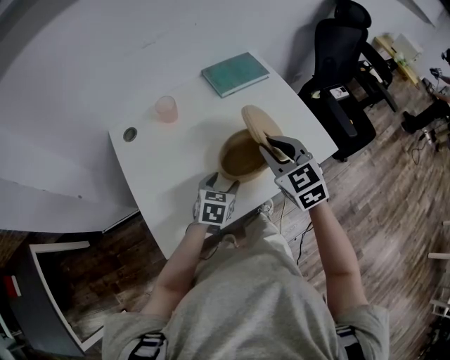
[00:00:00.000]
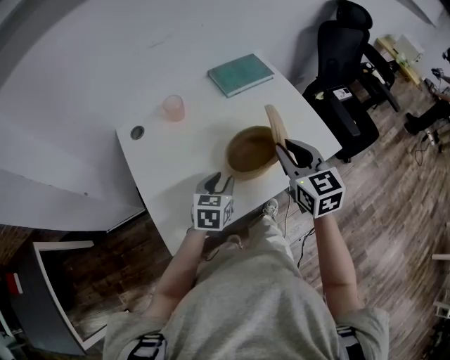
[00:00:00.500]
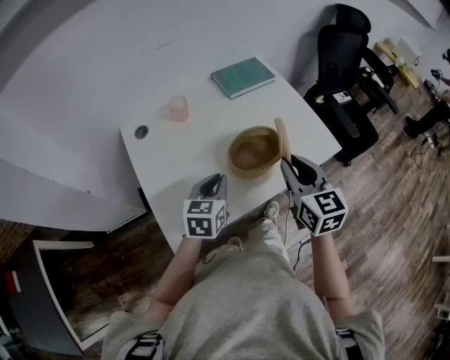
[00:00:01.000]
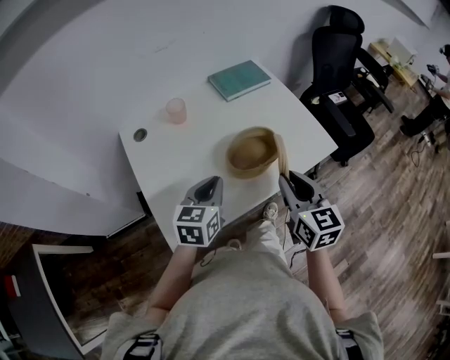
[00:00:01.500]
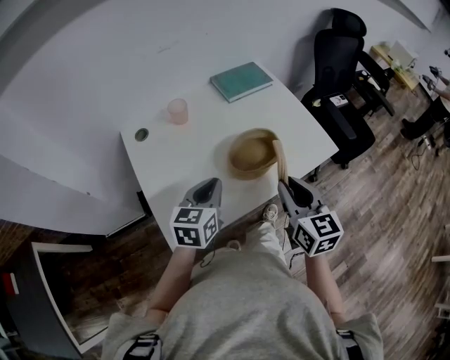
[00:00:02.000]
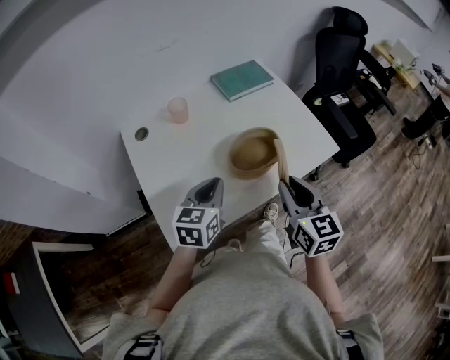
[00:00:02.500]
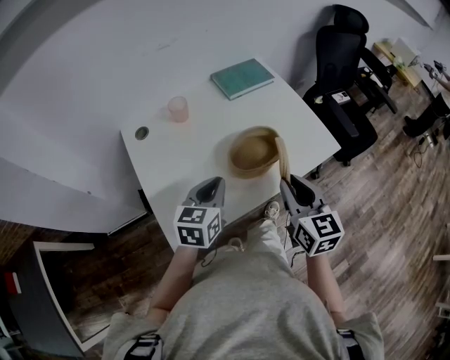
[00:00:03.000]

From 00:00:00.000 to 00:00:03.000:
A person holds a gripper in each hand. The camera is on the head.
From 00:00:00.000 to 00:00:01.500: The right gripper moves backward, roughly 10 cm, and rotates about 30 degrees. The left gripper moves upward, backward and to the left, about 15 cm, and closes its fingers.
From 00:00:01.500 to 00:00:03.000: The two grippers keep their place.

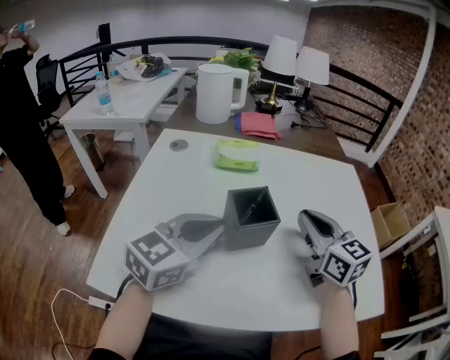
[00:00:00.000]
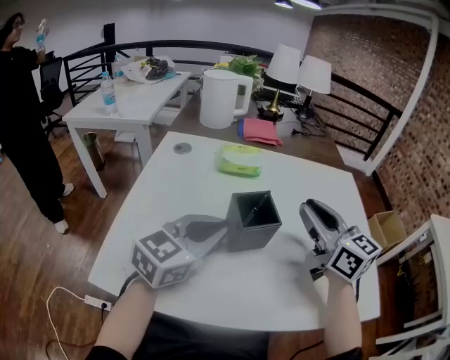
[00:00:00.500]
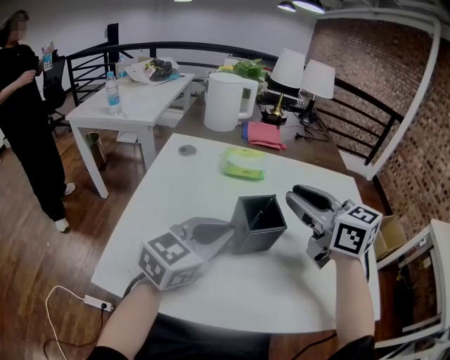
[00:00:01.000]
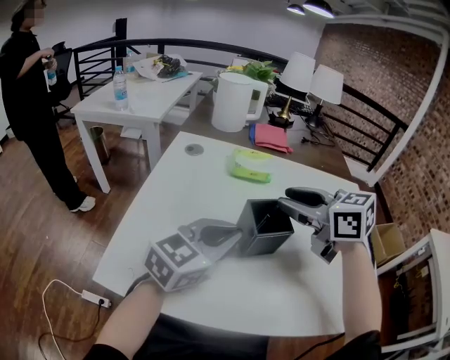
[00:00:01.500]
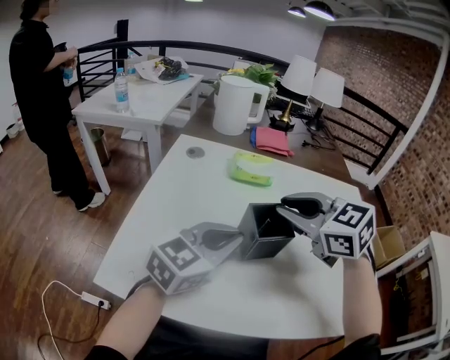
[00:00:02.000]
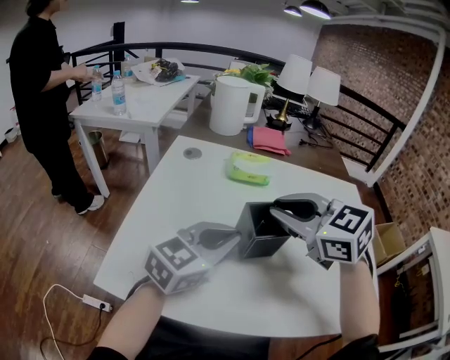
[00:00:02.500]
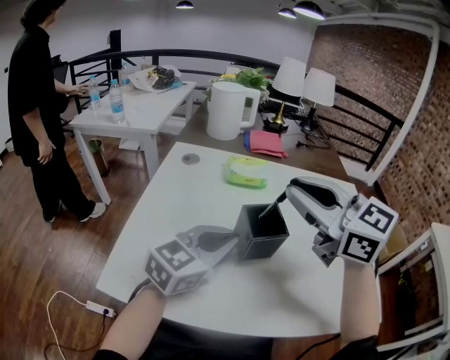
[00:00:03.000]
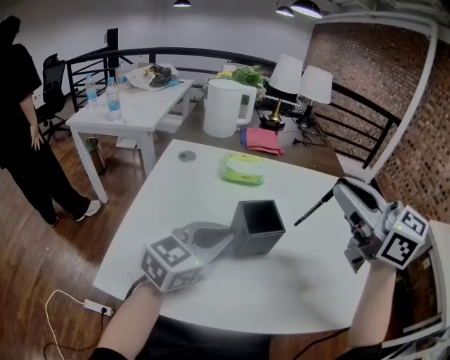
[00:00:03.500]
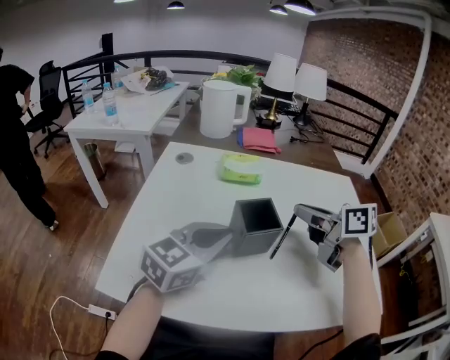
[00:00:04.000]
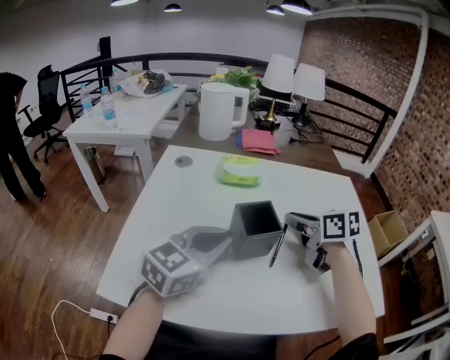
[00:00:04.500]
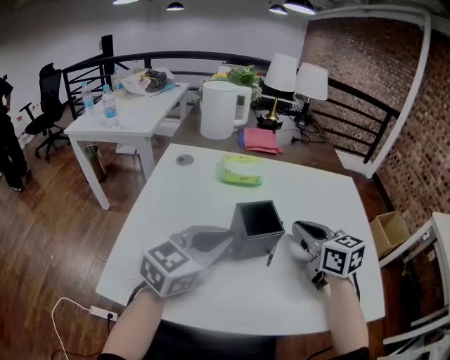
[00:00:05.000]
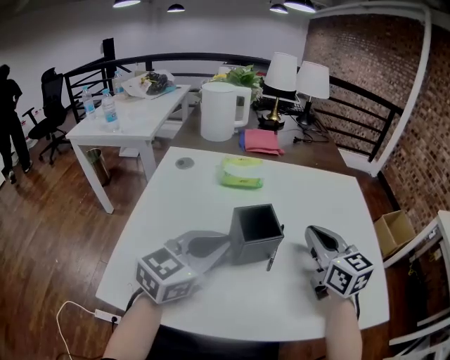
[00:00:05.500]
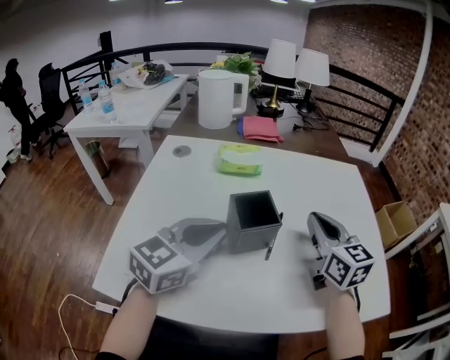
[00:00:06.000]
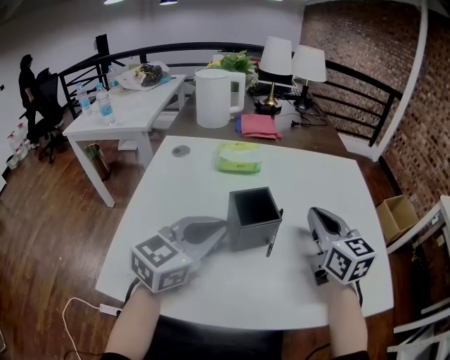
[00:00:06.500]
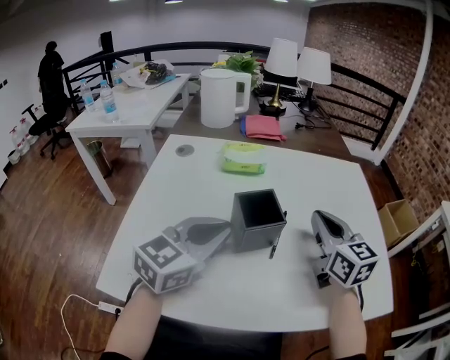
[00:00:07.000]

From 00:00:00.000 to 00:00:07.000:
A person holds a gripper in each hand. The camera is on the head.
From 00:00:00.000 to 00:00:02.000: The right gripper moves to the left and upward, roughly 15 cm, and rotates some 30 degrees.
From 00:00:02.000 to 00:00:03.500: The right gripper heads upward and to the right, covering approximately 15 cm, and turns by roughly 30 degrees.
From 00:00:03.500 to 00:00:05.000: The right gripper travels downward by some 20 cm, and rotates about 20 degrees.
From 00:00:05.000 to 00:00:07.000: There are only small adjustments of the grippers.

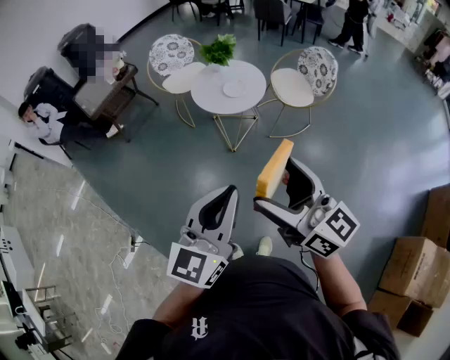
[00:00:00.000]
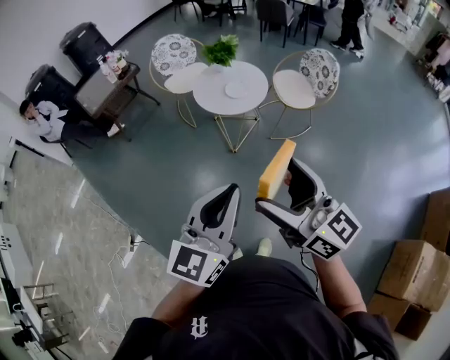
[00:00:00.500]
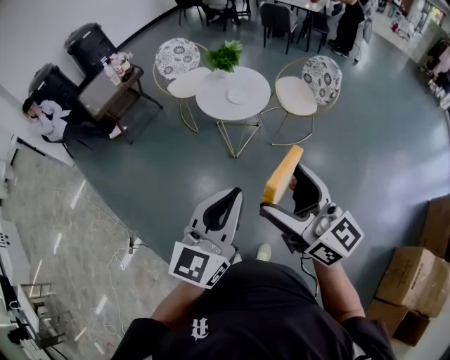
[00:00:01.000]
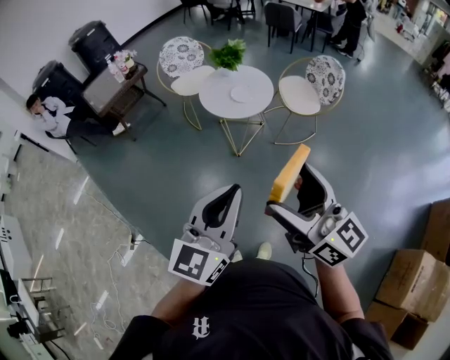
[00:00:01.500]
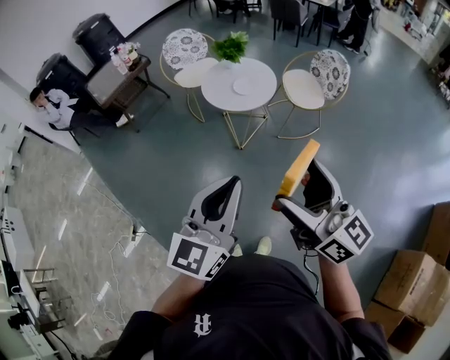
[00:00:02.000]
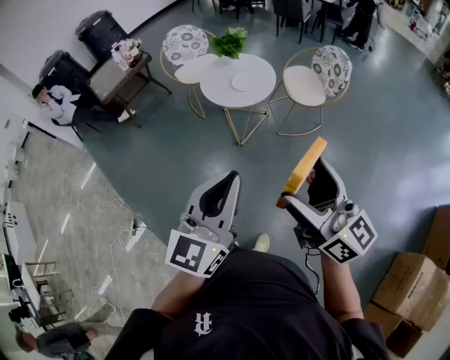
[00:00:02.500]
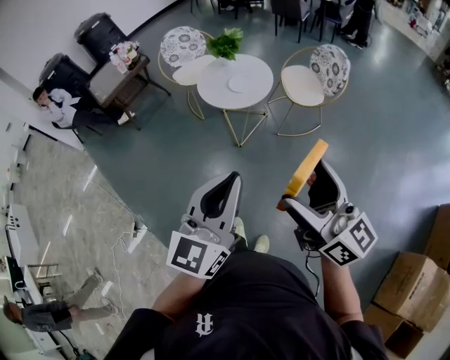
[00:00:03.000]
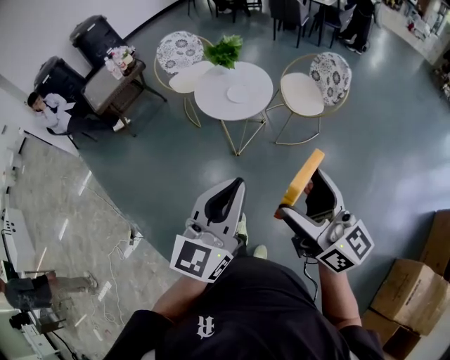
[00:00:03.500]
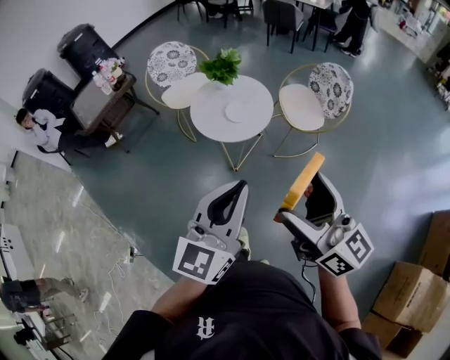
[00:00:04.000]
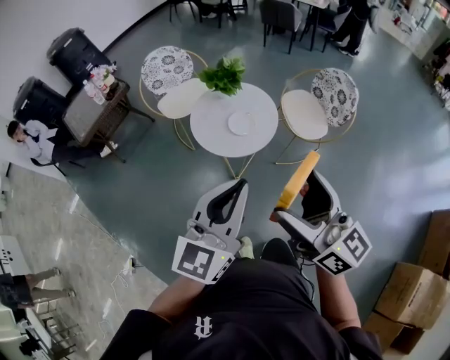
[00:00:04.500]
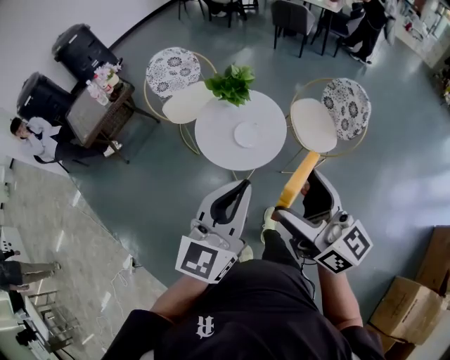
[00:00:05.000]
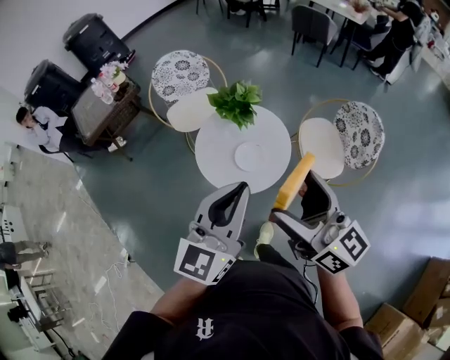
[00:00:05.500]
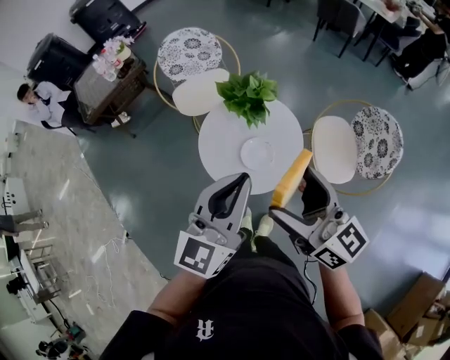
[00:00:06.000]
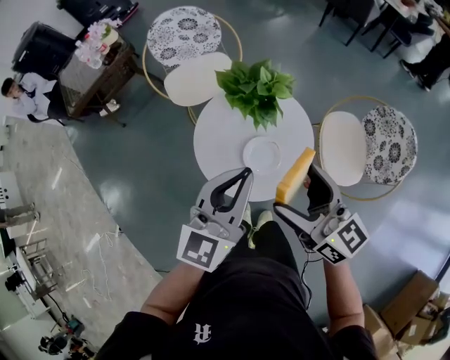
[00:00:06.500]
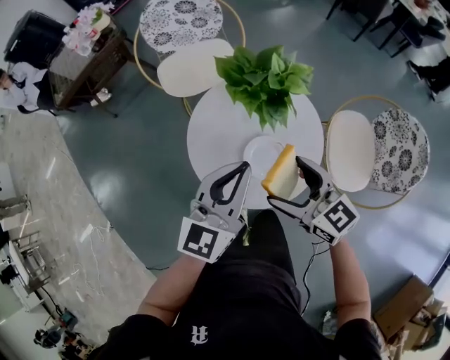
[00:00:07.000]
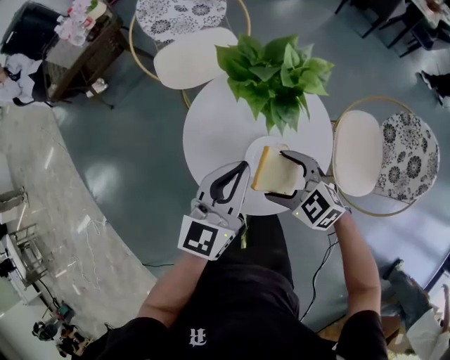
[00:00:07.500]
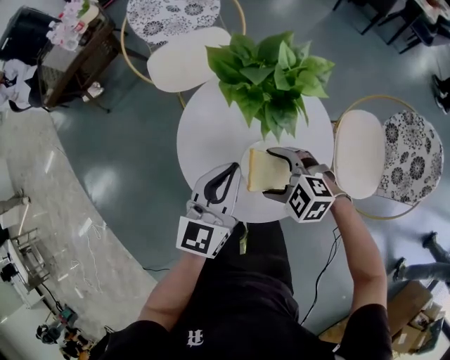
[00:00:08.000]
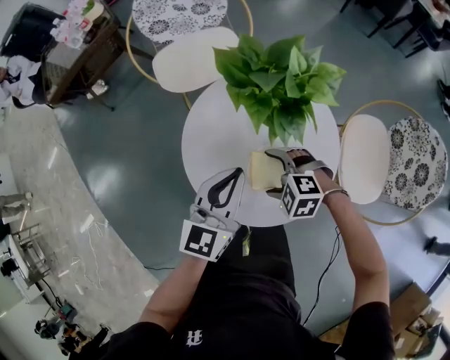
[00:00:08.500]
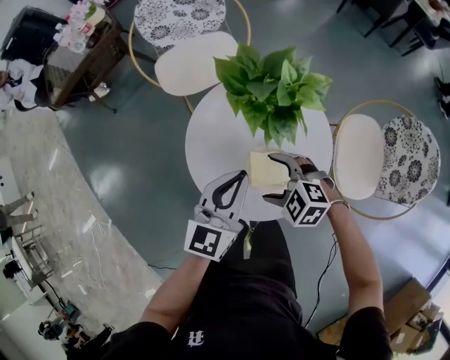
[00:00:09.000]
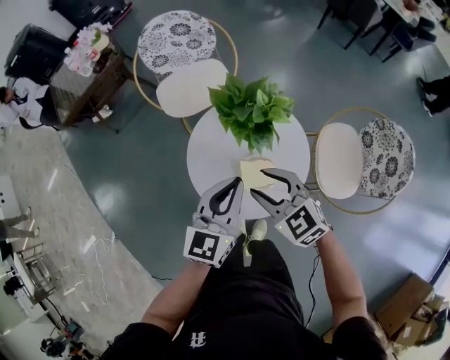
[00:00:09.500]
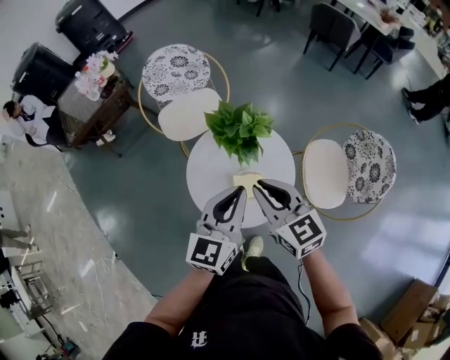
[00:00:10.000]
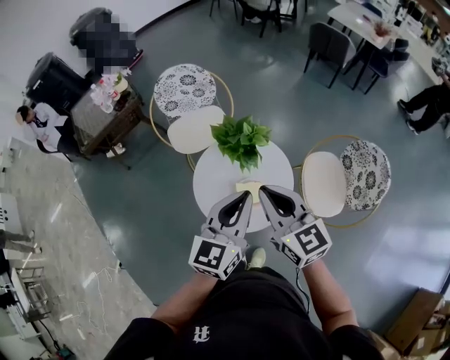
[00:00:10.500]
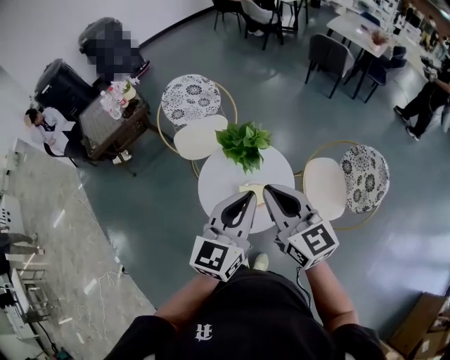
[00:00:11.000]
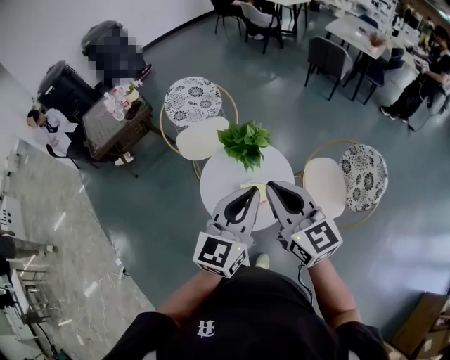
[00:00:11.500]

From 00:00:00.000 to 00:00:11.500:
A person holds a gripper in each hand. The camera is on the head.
From 00:00:00.000 to 00:00:02.000: The right gripper shifts some 5 cm to the right.
From 00:00:02.000 to 00:00:04.000: Both grippers move forward, some 20 cm.
From 00:00:04.000 to 00:00:06.000: The two grippers travel together, forward, some 40 cm.
From 00:00:06.000 to 00:00:07.500: The left gripper travels downward and forward by roughly 30 cm, while the right gripper travels downward by approximately 40 cm, and tips its fingers downward by some 40 degrees.
From 00:00:07.500 to 00:00:09.500: The left gripper moves upward, about 10 cm. The right gripper shifts some 15 cm upward, and closes its fingers.
From 00:00:09.500 to 00:00:11.500: The left gripper moves upward and backward, roughly 25 cm. Meanwhile the right gripper is displaced upward by some 25 cm, rotates some 40 degrees, and closes up.

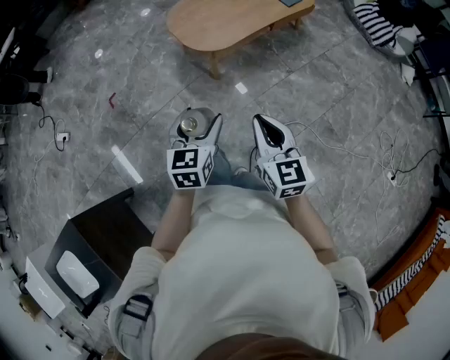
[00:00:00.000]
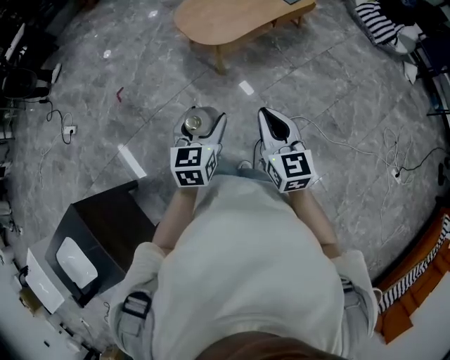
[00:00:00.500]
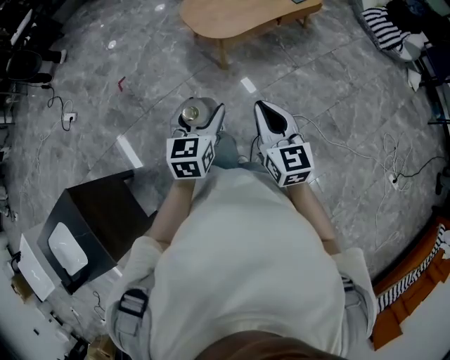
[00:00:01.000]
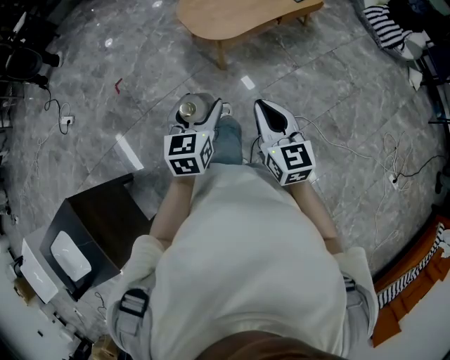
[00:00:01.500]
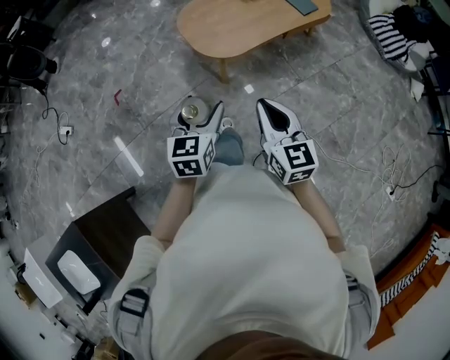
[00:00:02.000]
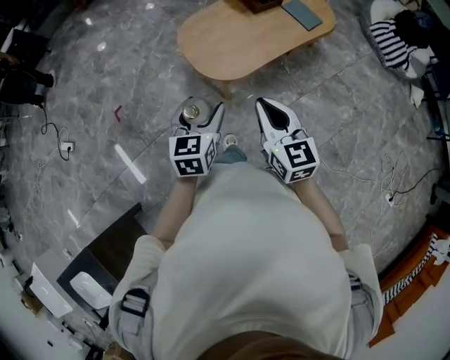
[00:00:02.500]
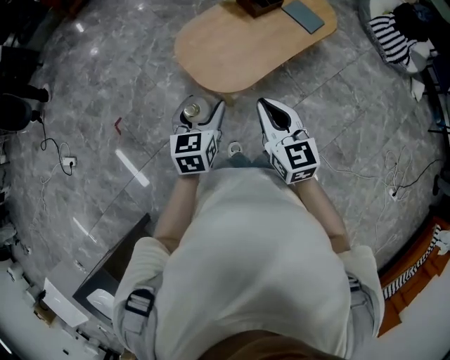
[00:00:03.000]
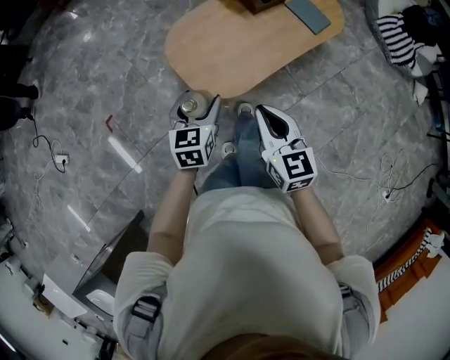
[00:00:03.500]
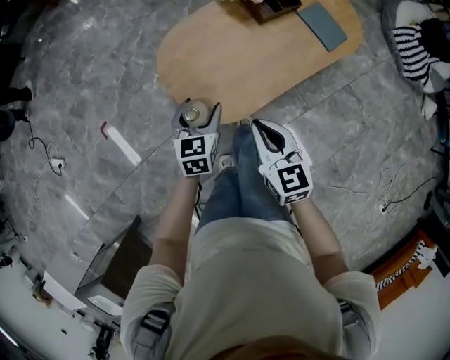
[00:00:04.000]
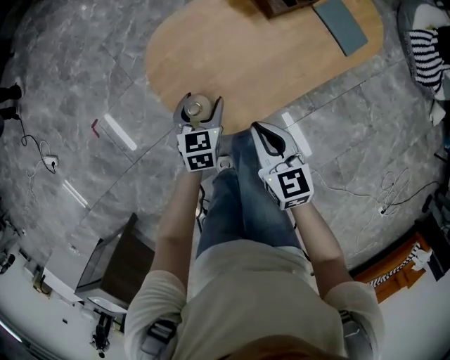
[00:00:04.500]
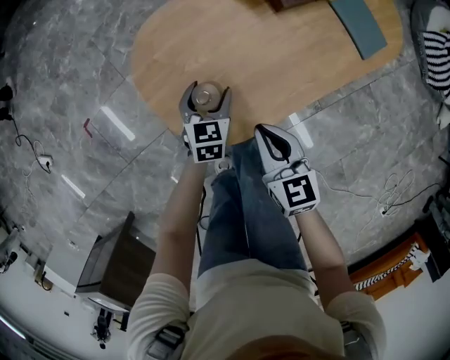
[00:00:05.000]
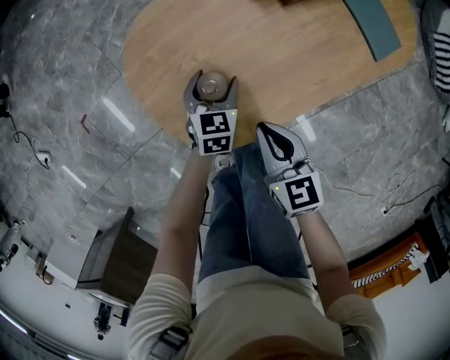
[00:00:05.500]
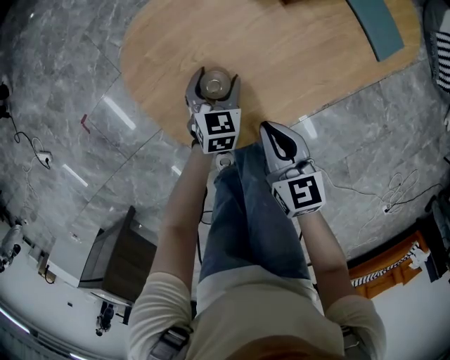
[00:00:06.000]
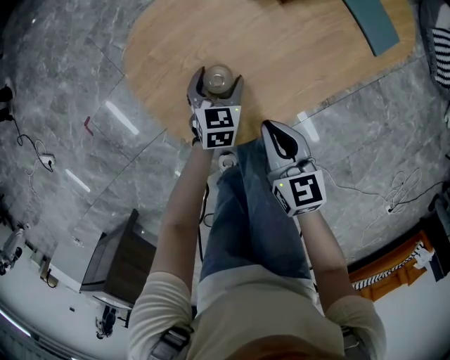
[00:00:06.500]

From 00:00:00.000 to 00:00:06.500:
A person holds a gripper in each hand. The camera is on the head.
From 00:00:00.000 to 00:00:02.000: The grippers both shift forward by roughly 10 cm.
From 00:00:02.000 to 00:00:04.500: The pair of grippers is taken forward, some 40 cm. The two grippers go about 25 cm downward. The right gripper turns by roughly 20 degrees.
From 00:00:04.500 to 00:00:06.500: The right gripper travels downward by approximately 10 cm. Meanwhile the left gripper goes roughly 15 cm downward and to the right.
